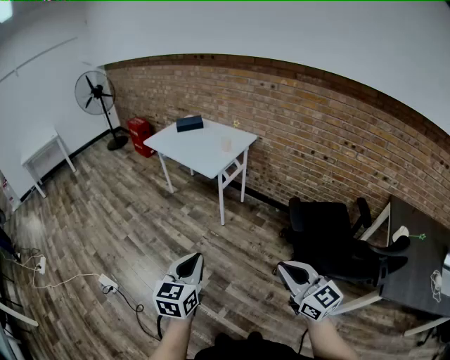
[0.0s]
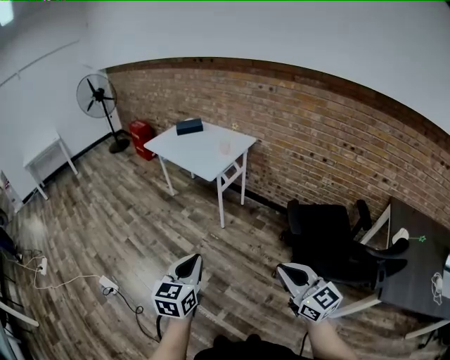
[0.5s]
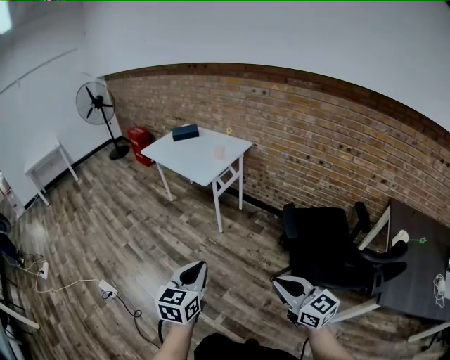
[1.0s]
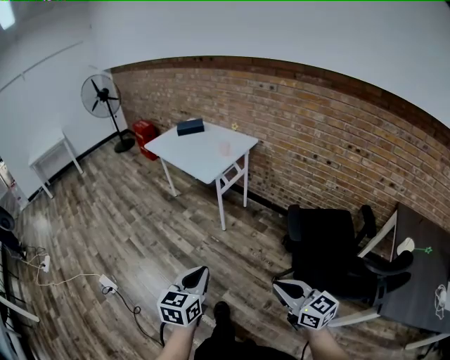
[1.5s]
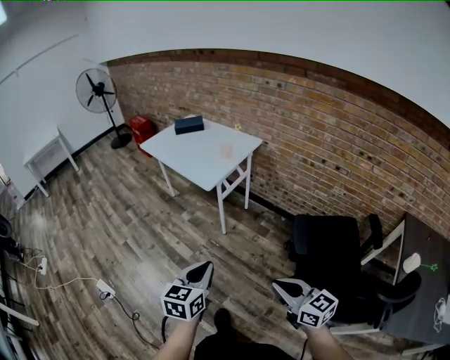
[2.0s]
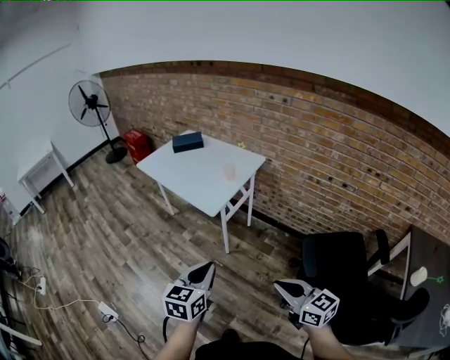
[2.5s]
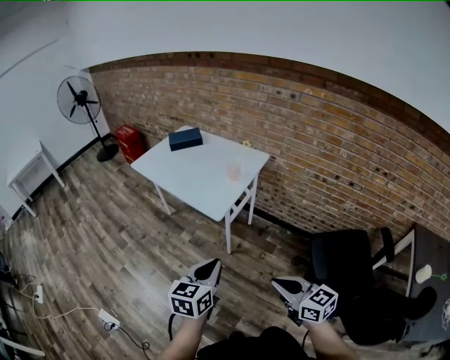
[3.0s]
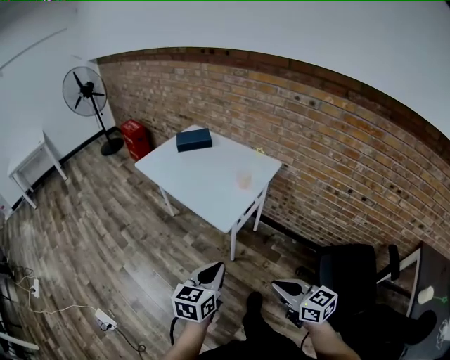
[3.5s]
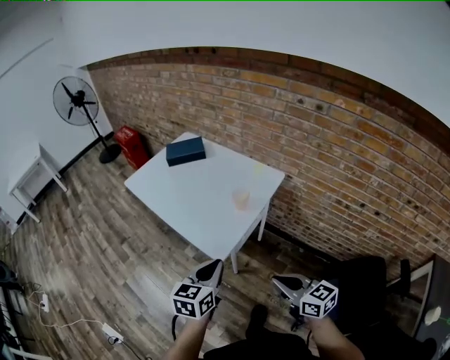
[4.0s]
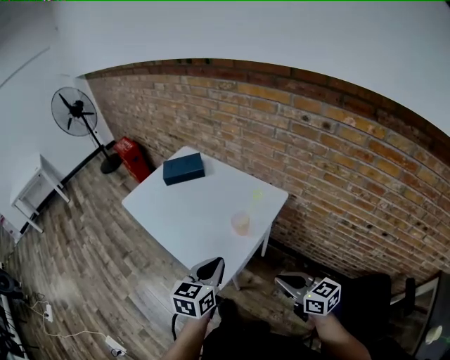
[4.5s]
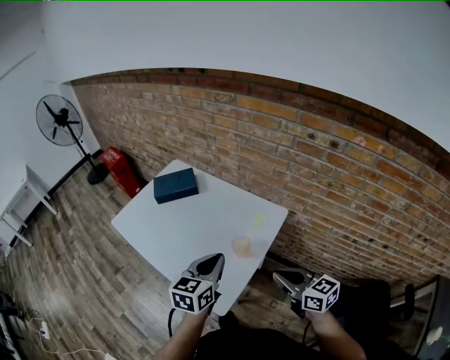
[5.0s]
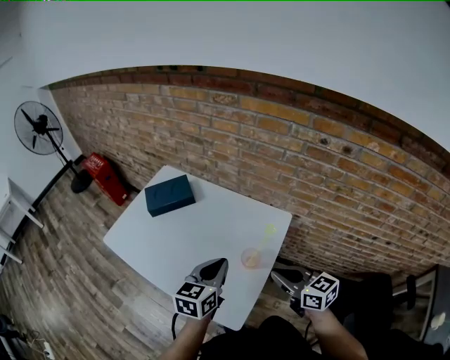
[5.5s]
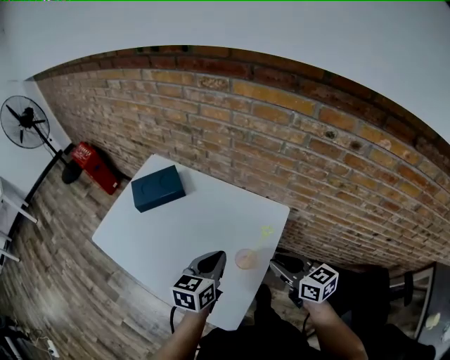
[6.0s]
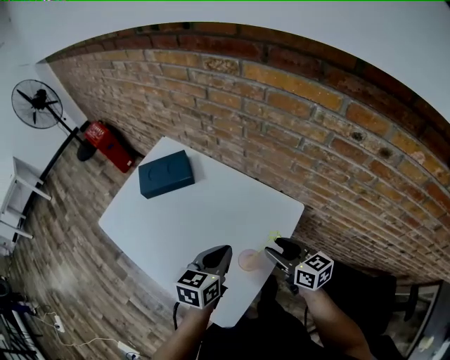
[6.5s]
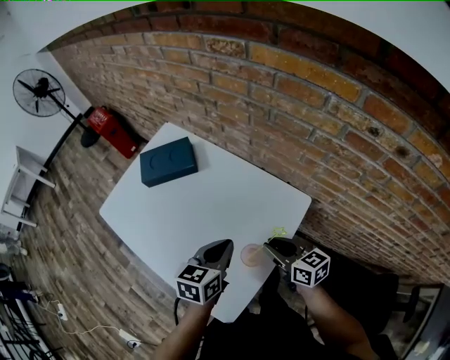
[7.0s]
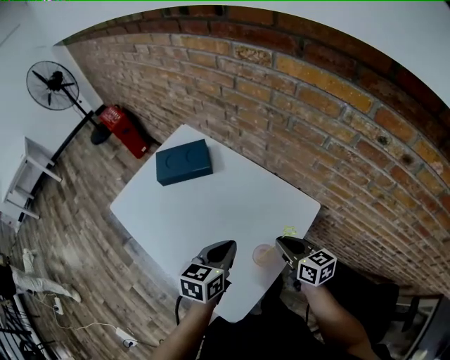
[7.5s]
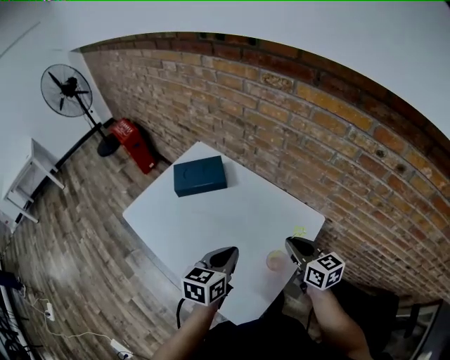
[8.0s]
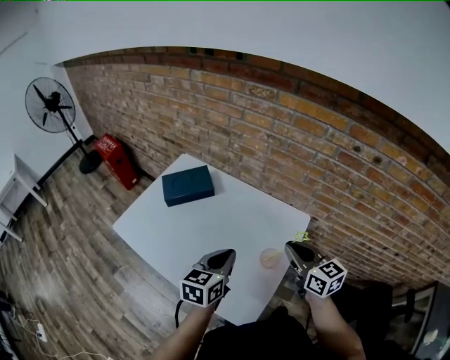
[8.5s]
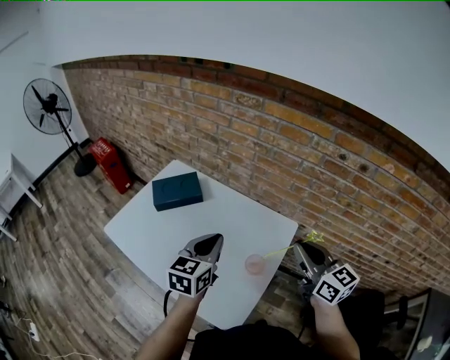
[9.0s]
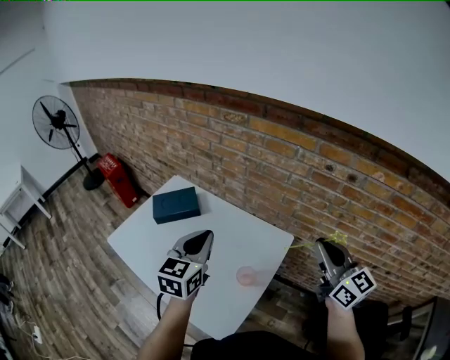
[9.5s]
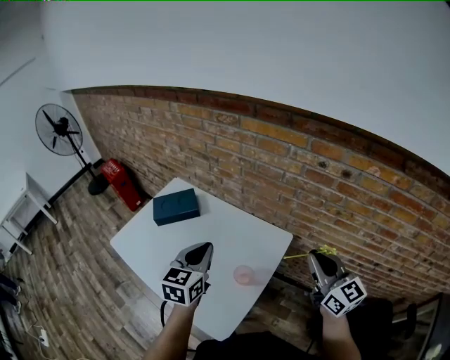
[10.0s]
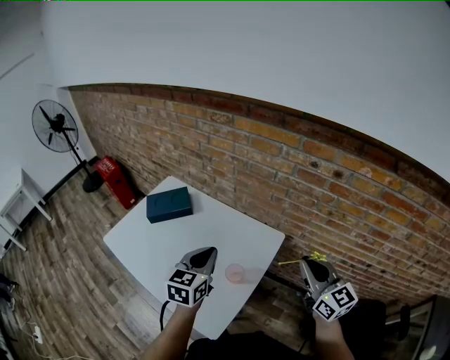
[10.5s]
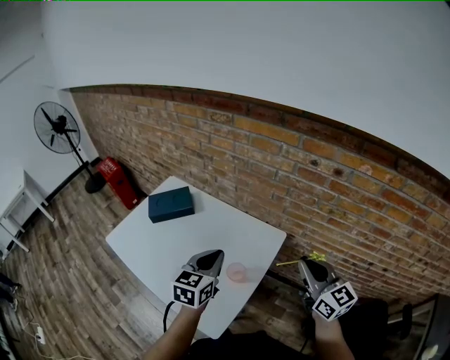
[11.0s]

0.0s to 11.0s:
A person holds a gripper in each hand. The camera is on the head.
0.0s to 2.0s: The right gripper shifts some 15 cm forward, downward and to the right, while the left gripper shifts approximately 15 cm forward, to the right and downward.
2.0s to 3.5s: The two grippers go approximately 30 cm forward.
3.5s to 5.5s: Both grippers are carried forward, some 50 cm.
5.5s to 7.5s: The left gripper shifts roughly 10 cm forward and downward. Meanwhile the right gripper is displaced forward and downward by about 15 cm, and opens and closes again.
7.5s to 9.0s: The left gripper is displaced upward by some 10 cm; the right gripper shifts some 20 cm upward, and turns by roughly 30 degrees.
9.0s to 11.0s: The two grippers go about 10 cm to the right.

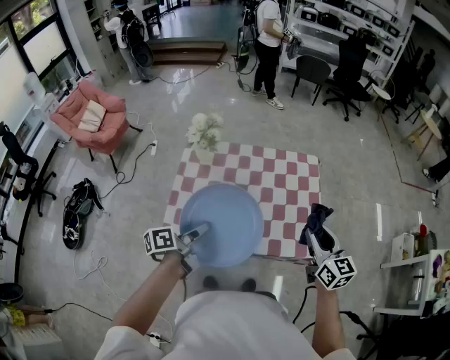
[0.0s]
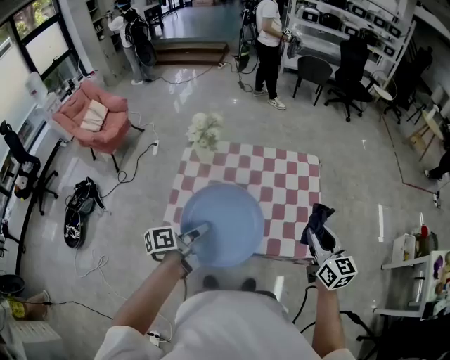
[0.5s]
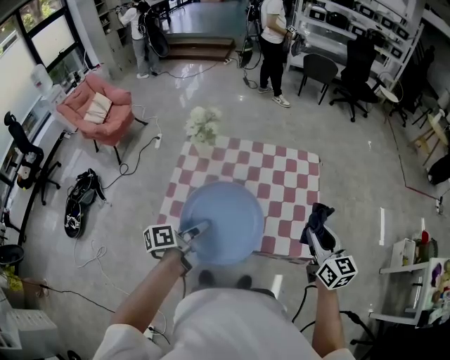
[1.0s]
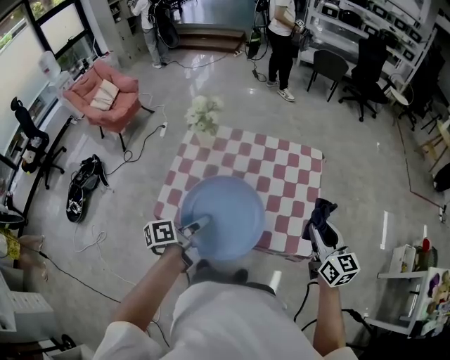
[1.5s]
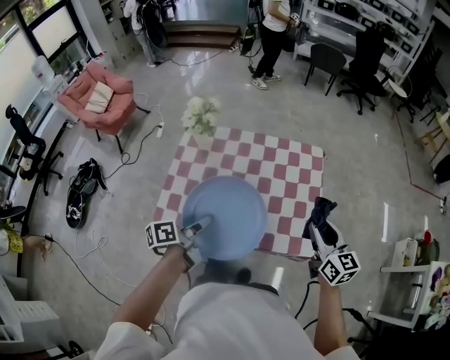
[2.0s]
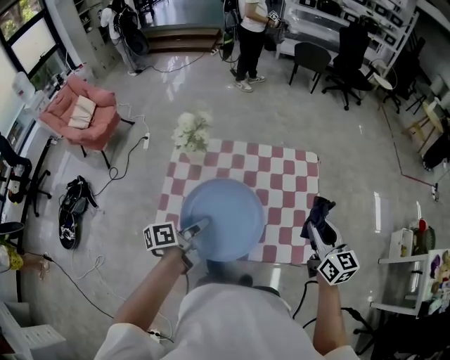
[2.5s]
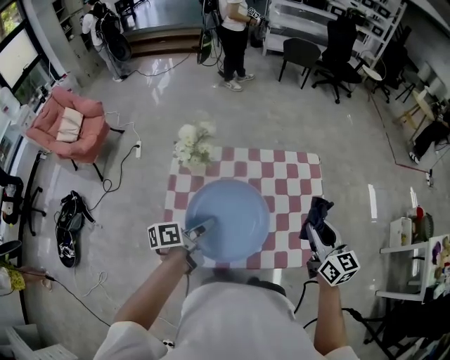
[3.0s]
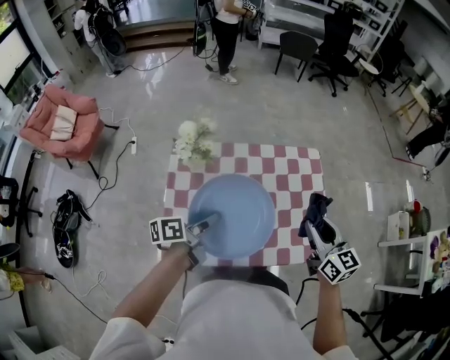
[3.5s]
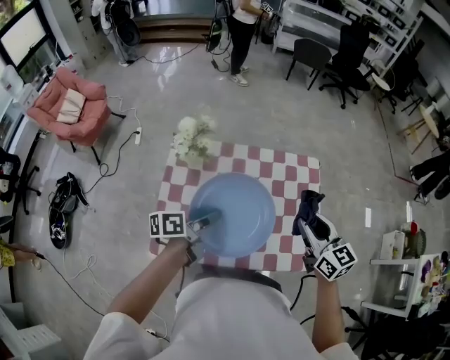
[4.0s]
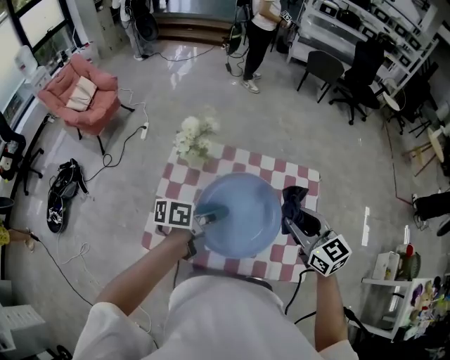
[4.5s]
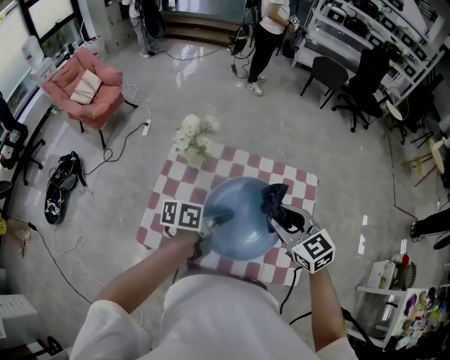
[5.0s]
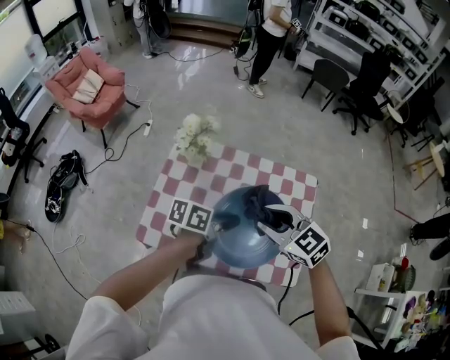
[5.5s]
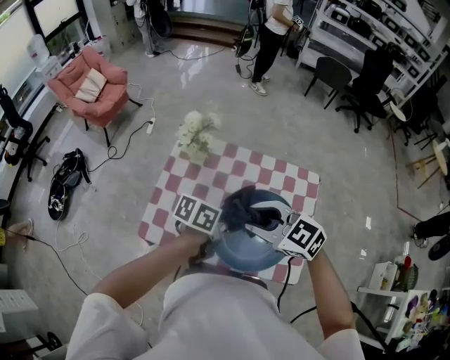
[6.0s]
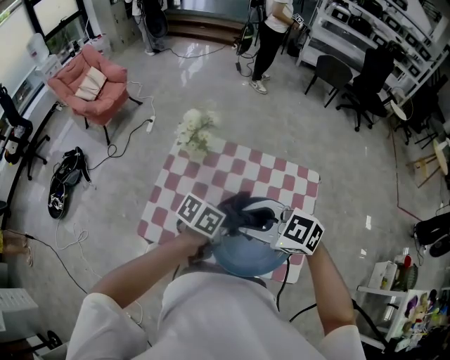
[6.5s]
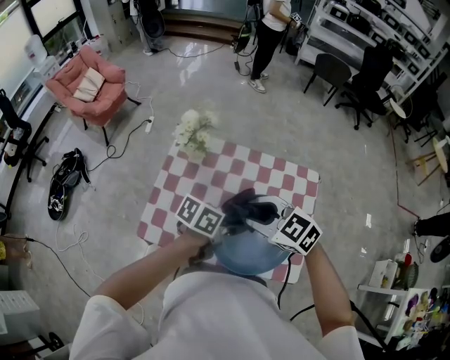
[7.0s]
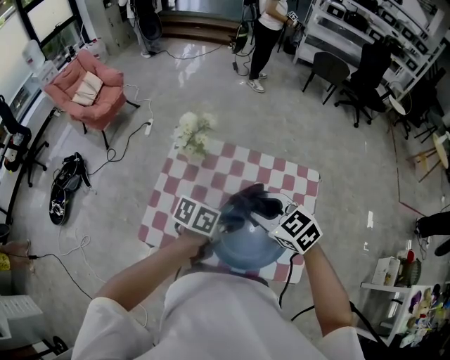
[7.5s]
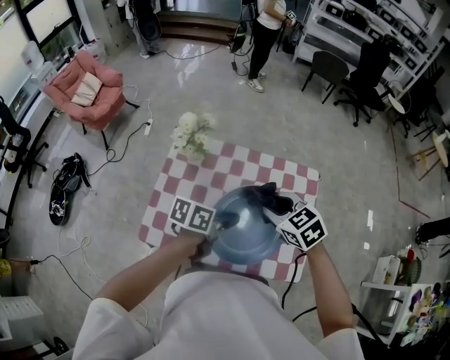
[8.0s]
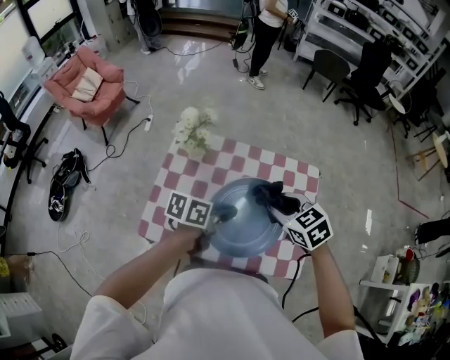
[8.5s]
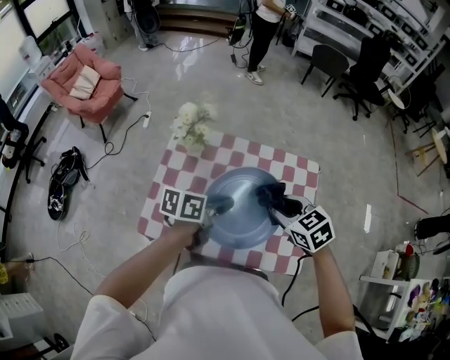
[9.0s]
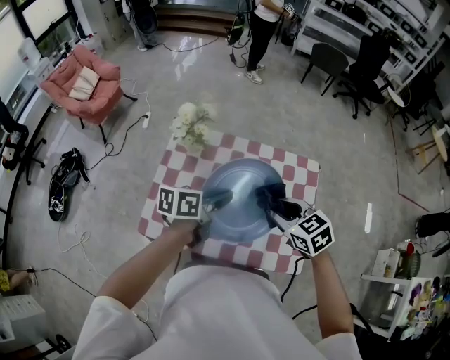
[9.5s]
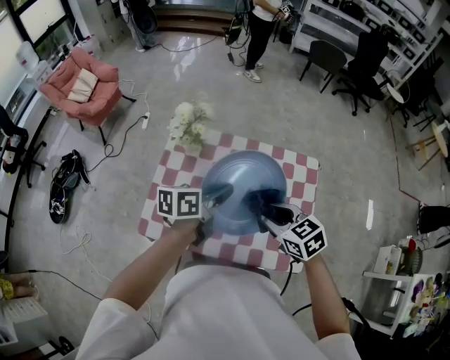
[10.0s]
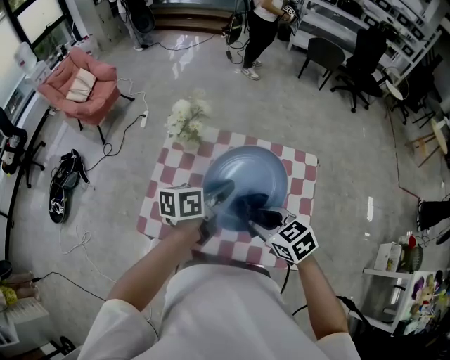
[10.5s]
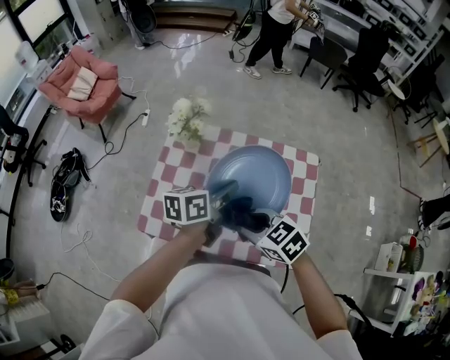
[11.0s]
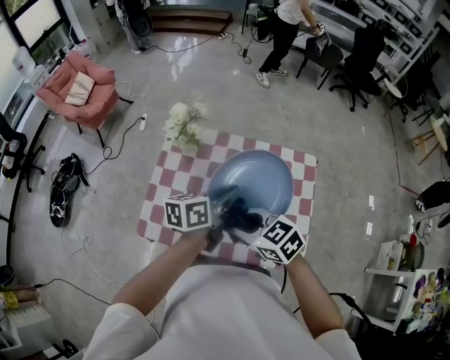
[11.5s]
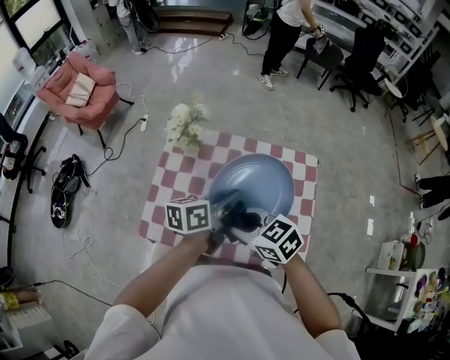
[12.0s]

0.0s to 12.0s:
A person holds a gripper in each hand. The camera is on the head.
0.0s to 2.0s: The grippers both shift to the right by roughly 5 cm.
2.0s to 4.0s: The right gripper moves to the left and forward, roughly 20 cm, while the left gripper is displaced forward and to the left by some 20 cm.
4.0s to 6.0s: The left gripper ends up roughly 15 cm from where it was, and rotates some 20 degrees, while the right gripper shifts by approximately 15 cm, and changes its angle by about 50 degrees.
6.0s to 8.0s: The right gripper shifts by some 10 cm, and swivels roughly 30 degrees.
8.0s to 10.0s: The left gripper shifts by roughly 5 cm. Meanwhile the right gripper goes some 5 cm backward.
10.0s to 12.0s: The right gripper heads to the left, covering some 10 cm.

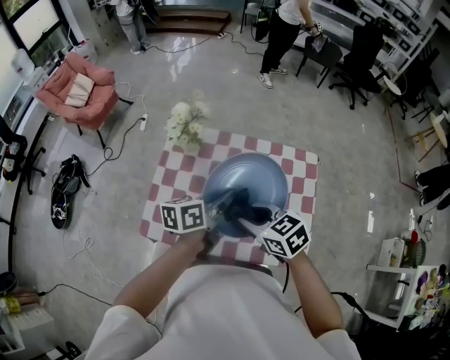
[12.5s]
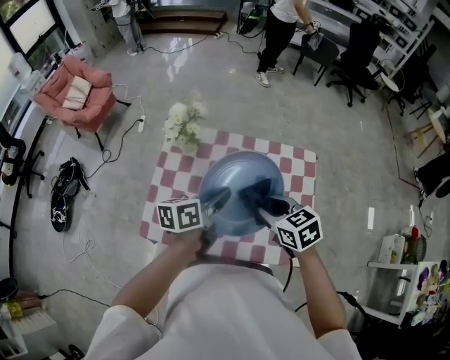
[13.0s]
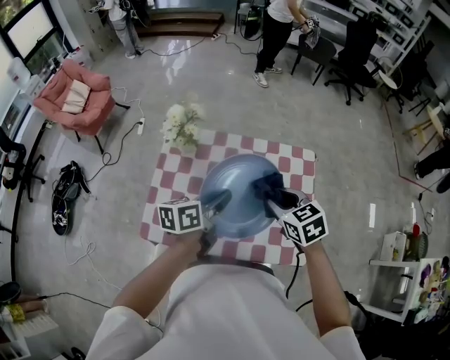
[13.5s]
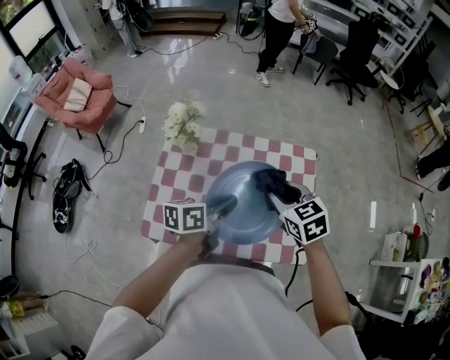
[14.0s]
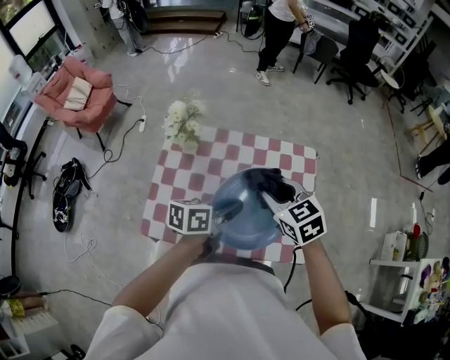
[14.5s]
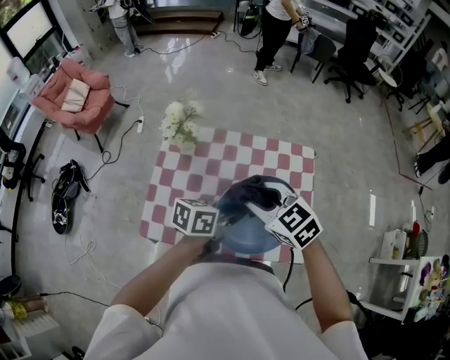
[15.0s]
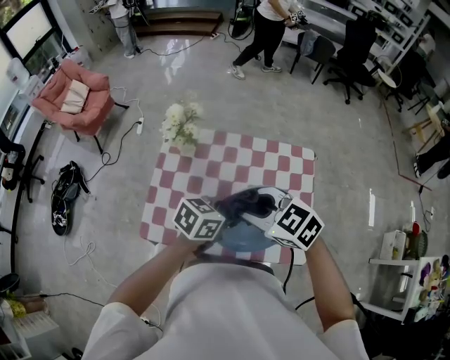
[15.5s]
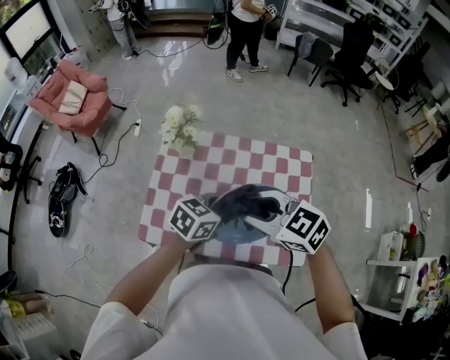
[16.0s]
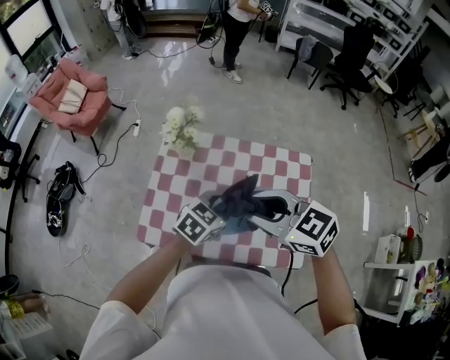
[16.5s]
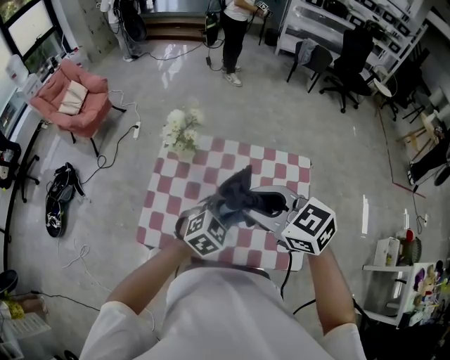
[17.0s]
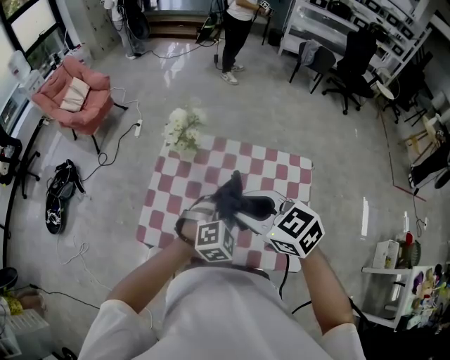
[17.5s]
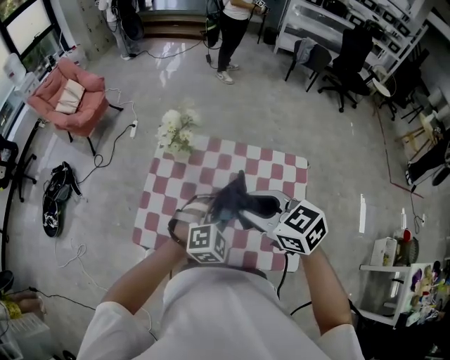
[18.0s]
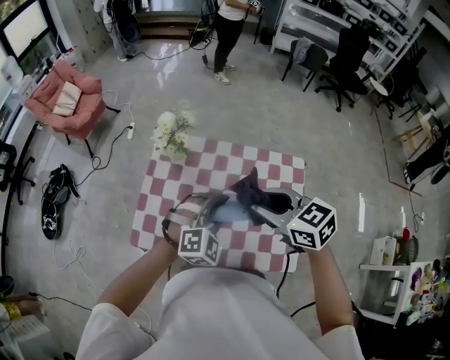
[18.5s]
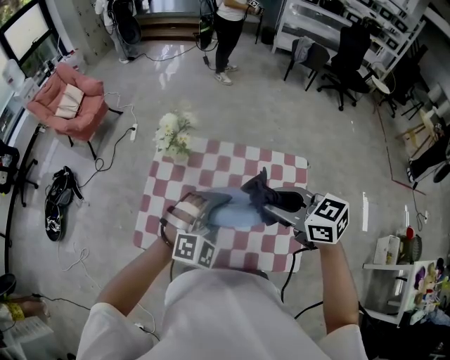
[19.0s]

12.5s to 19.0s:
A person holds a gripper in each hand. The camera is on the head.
12.5s to 14.5s: The right gripper is displaced to the right and forward by roughly 10 cm, and changes its angle by approximately 20 degrees. The left gripper moves about 5 cm.
14.5s to 17.0s: The left gripper rolls clockwise, seen from behind, by some 60 degrees; the right gripper moves upward, approximately 10 cm, and changes its angle by some 20 degrees.
17.0s to 19.0s: The left gripper goes some 5 cm upward, and rotates about 40 degrees; the right gripper moves to the right, approximately 10 cm.
